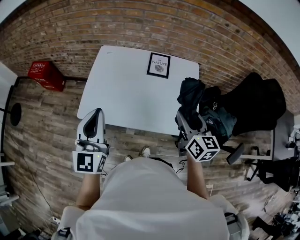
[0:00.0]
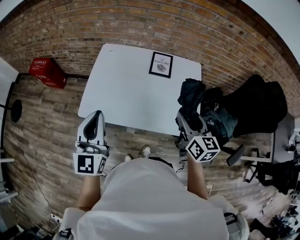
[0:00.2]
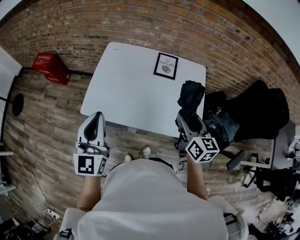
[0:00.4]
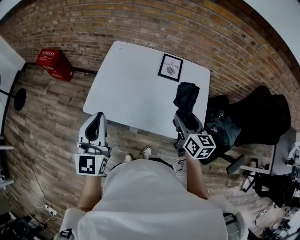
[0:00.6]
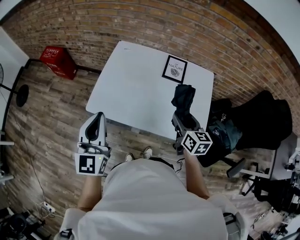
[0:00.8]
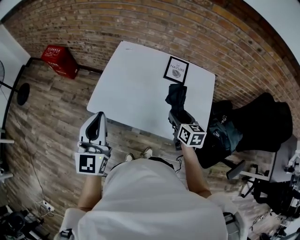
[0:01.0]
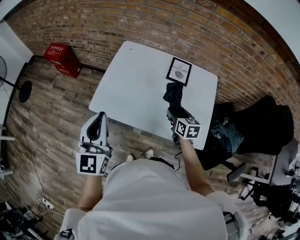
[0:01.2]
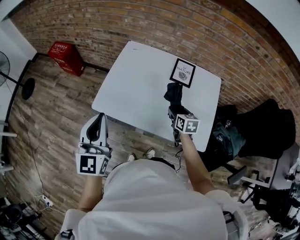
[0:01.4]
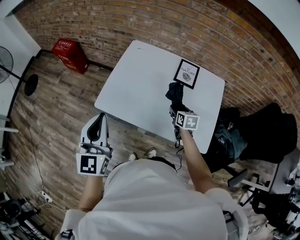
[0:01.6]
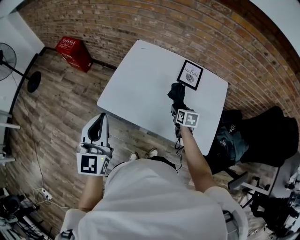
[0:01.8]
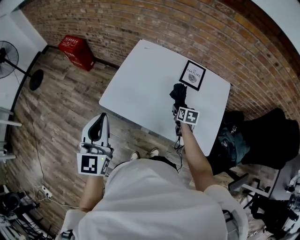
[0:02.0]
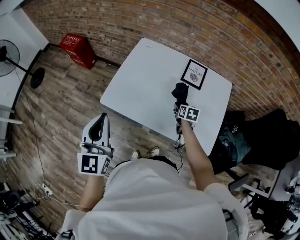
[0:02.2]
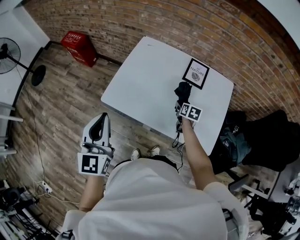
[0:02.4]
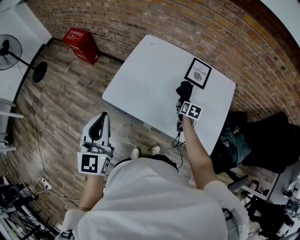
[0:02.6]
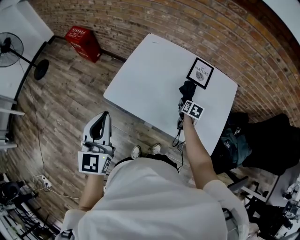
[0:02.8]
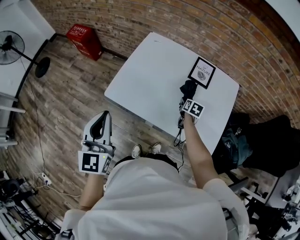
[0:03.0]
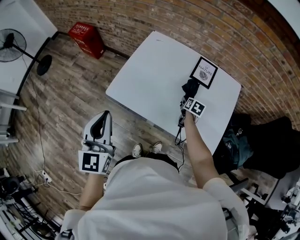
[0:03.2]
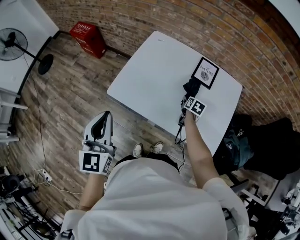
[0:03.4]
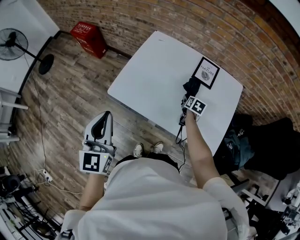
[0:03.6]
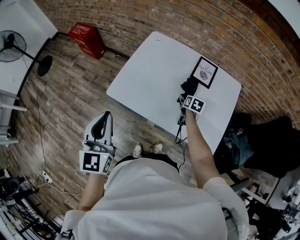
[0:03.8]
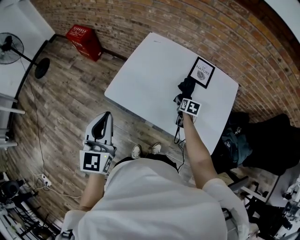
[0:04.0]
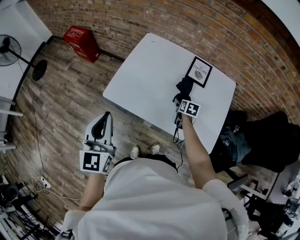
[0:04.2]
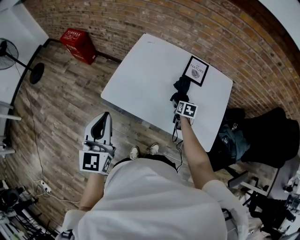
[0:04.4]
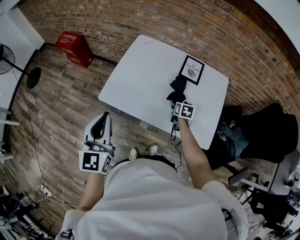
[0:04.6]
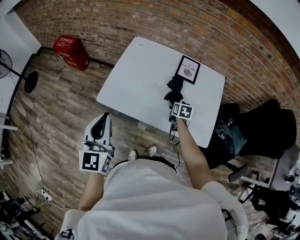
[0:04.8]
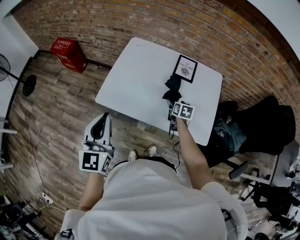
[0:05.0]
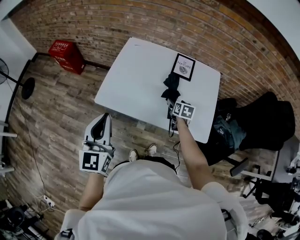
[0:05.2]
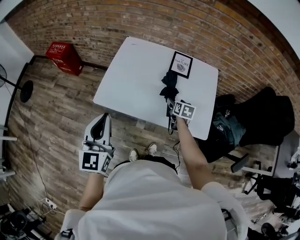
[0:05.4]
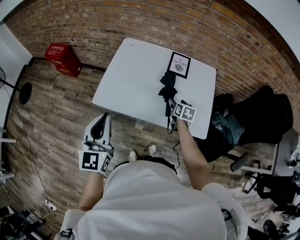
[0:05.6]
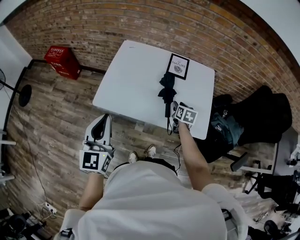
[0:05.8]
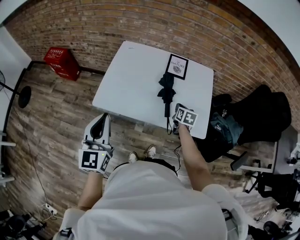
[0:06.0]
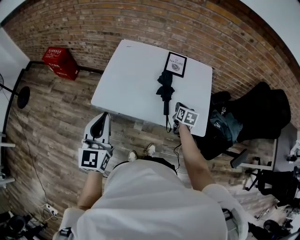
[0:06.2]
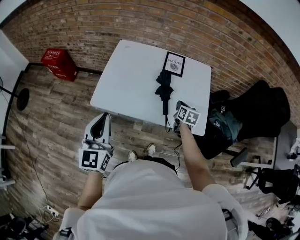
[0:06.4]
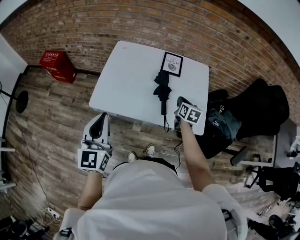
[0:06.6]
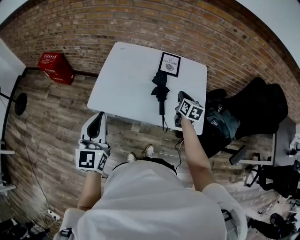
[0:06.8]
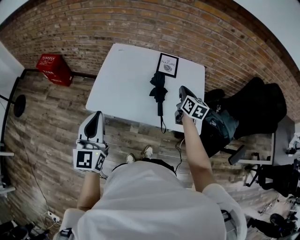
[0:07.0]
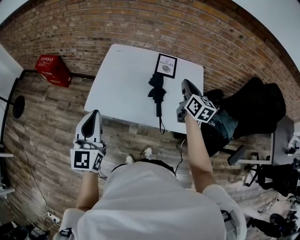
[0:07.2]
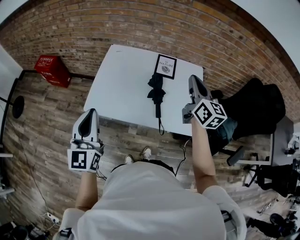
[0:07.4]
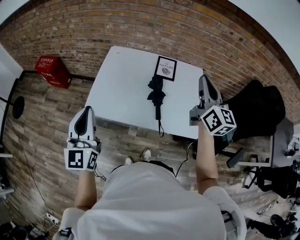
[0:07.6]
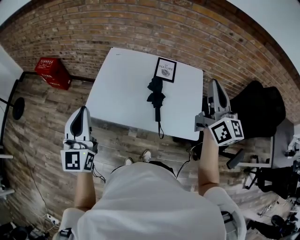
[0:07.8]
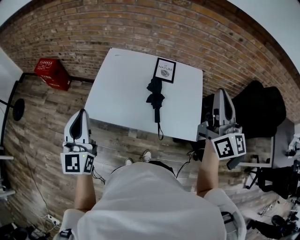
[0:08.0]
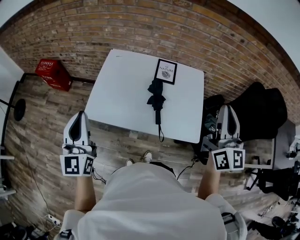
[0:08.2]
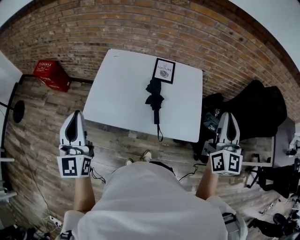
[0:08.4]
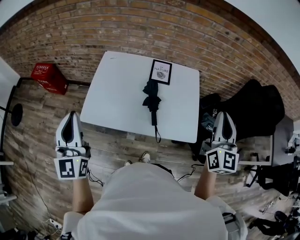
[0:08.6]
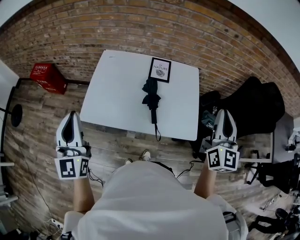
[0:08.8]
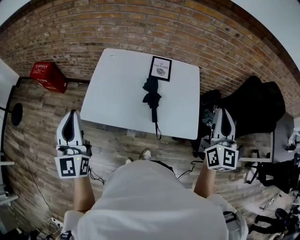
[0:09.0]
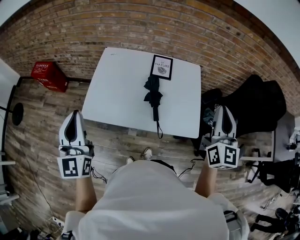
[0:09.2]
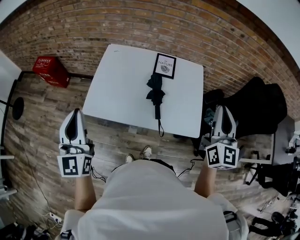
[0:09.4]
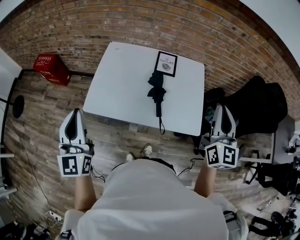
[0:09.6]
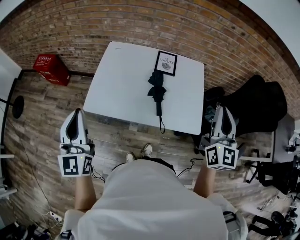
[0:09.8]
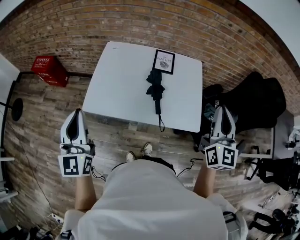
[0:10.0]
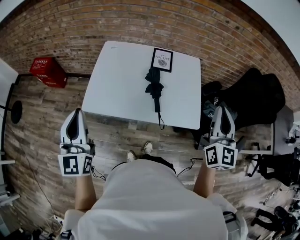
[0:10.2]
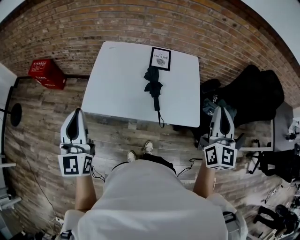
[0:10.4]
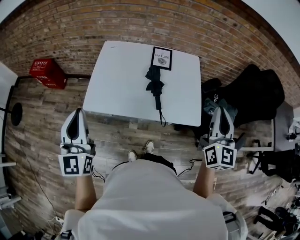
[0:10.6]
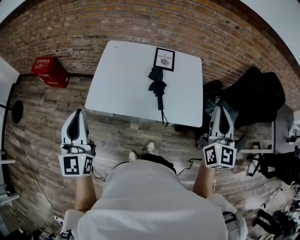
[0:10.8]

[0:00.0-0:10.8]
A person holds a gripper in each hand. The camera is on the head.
0:00.0 to 0:01.6: The left gripper goes approximately 5 cm to the left. The right gripper shifts some 25 cm downward and forward, and swivels some 30 degrees.
0:01.6 to 0:03.0: The right gripper moves downward, about 10 cm.
0:03.0 to 0:04.6: The grippers stay close to where they were, moving slightly.
0:04.6 to 0:06.2: The right gripper moves backward, upward and to the right, about 10 cm, and closes.
0:06.2 to 0:07.8: The left gripper moves upward, roughly 5 cm, while the right gripper travels upward by approximately 40 cm, and tilts its fingers some 50 degrees upward.
0:07.8 to 0:09.2: The right gripper shifts some 10 cm to the right and backward, and rotates some 20 degrees.
0:09.2 to 0:10.8: Both grippers move backward, roughly 5 cm.

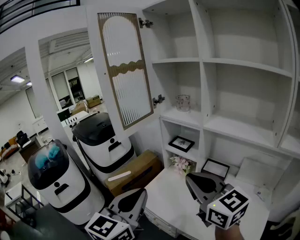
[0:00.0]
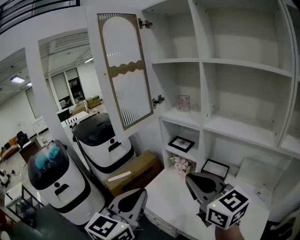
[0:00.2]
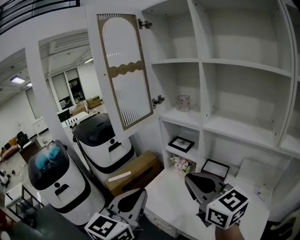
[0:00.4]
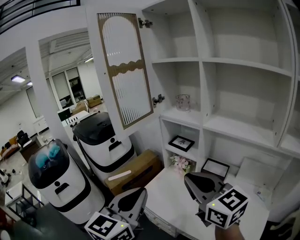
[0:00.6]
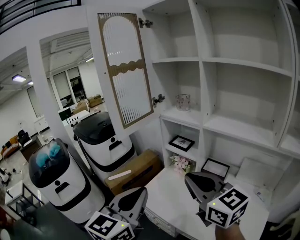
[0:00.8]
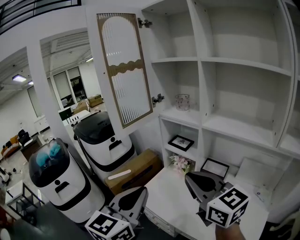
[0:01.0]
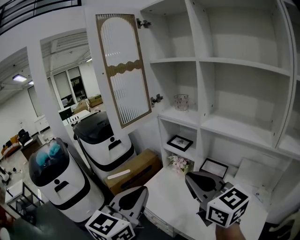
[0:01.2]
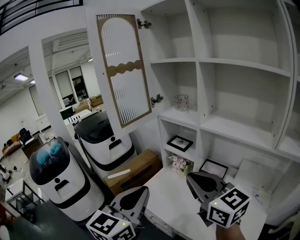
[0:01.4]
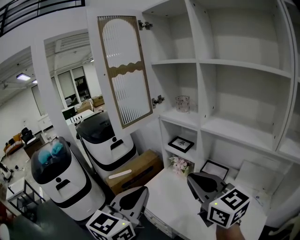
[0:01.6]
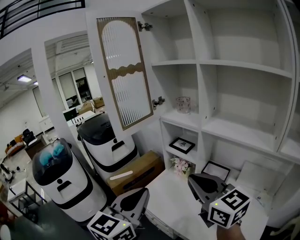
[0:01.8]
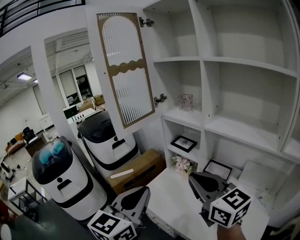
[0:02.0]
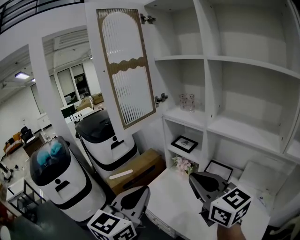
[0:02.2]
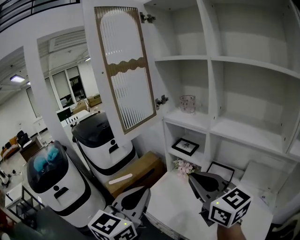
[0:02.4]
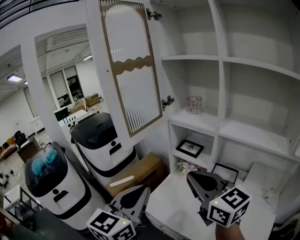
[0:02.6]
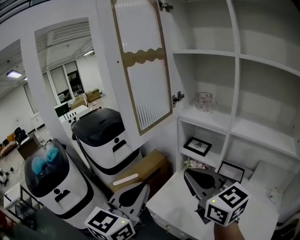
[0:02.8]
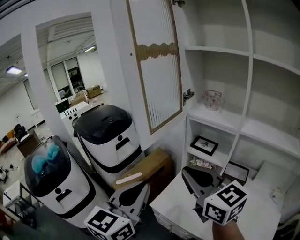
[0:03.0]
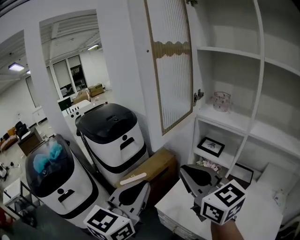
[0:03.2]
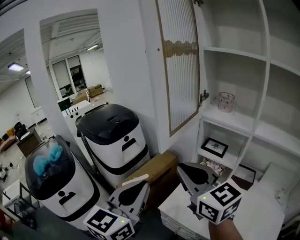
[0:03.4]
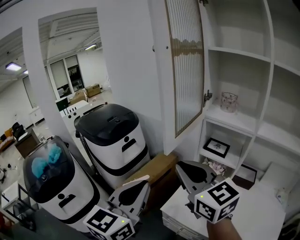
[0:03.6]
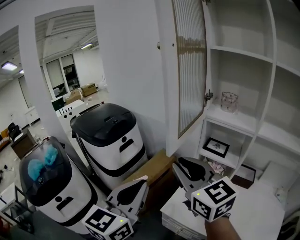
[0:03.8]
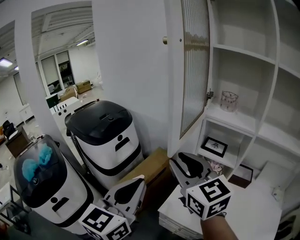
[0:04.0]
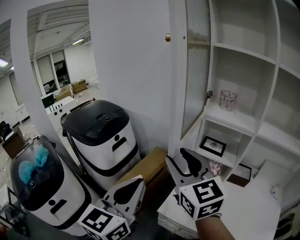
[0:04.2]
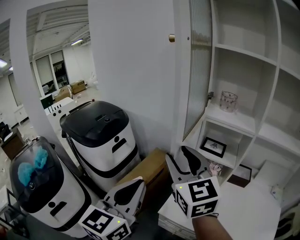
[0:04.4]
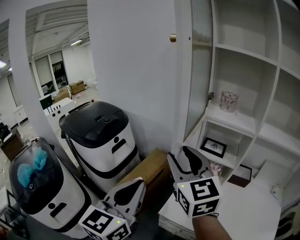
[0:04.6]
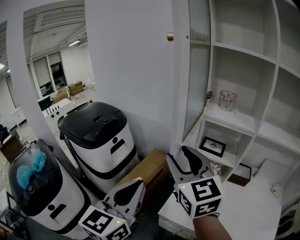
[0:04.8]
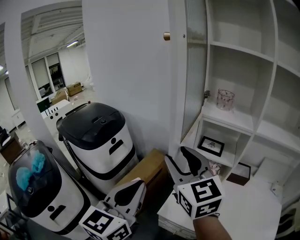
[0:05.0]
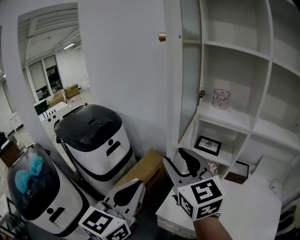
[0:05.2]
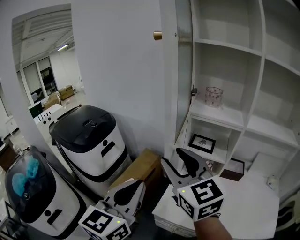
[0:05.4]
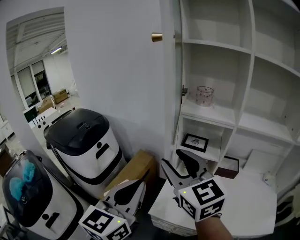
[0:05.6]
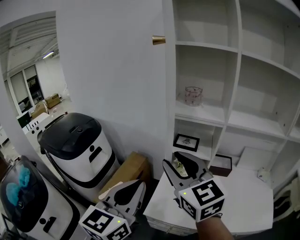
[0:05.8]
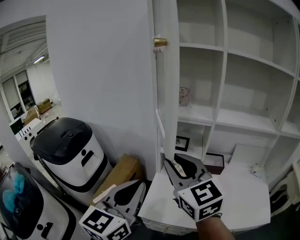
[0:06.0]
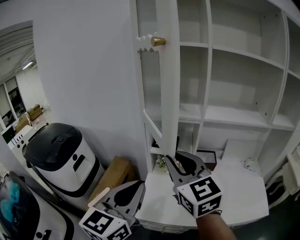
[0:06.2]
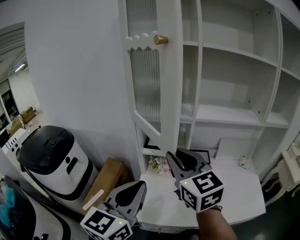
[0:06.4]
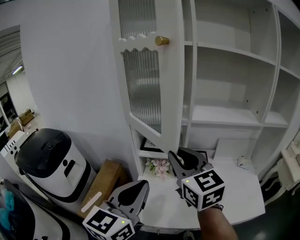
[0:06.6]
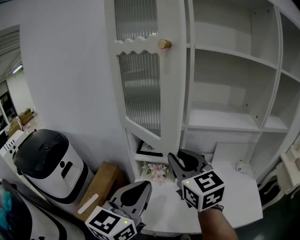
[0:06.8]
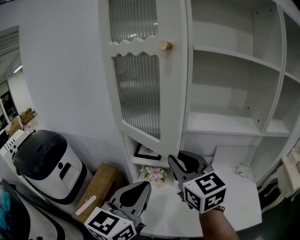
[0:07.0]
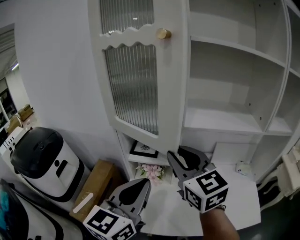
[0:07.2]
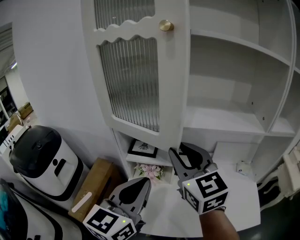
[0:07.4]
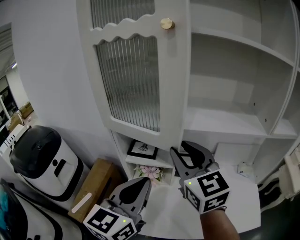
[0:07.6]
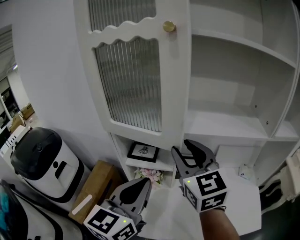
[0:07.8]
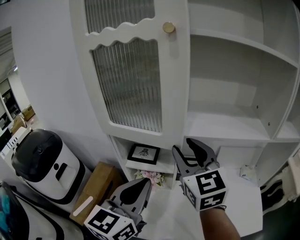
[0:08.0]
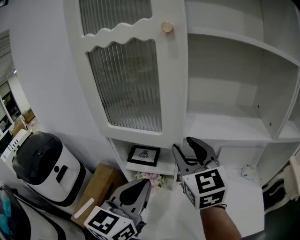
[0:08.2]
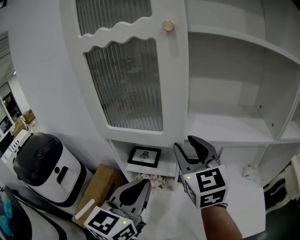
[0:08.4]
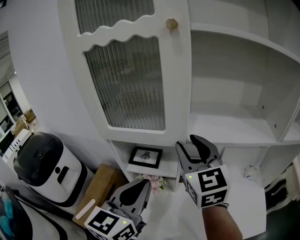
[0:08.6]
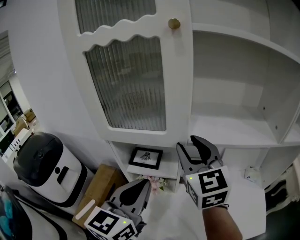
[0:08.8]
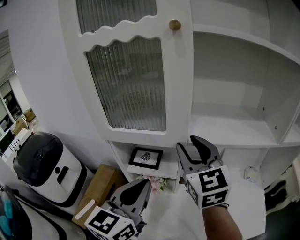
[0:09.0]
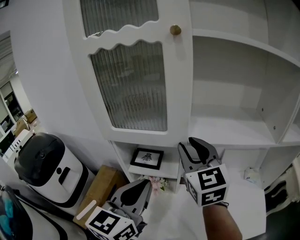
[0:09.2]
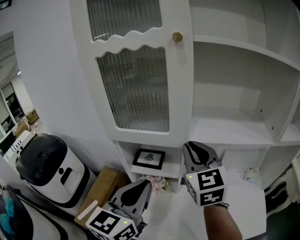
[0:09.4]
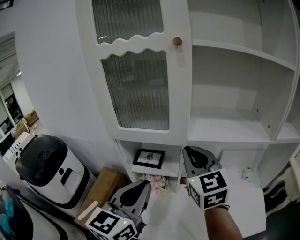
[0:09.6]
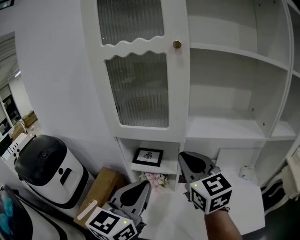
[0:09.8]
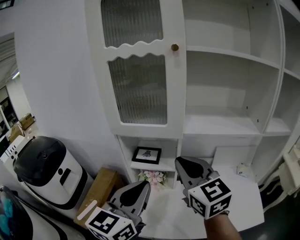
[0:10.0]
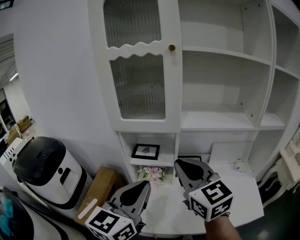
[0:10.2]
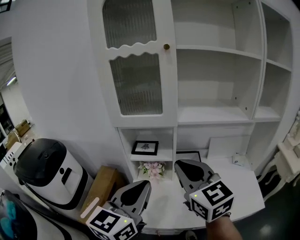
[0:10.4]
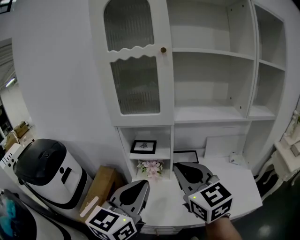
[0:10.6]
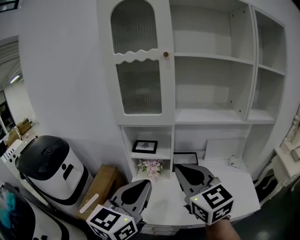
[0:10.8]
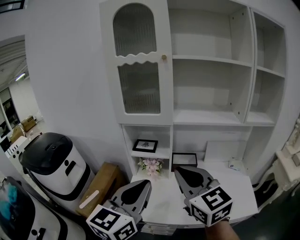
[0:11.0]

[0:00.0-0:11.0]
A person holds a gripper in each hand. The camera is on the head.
0:00.0 to 0:01.6: The grippers move only a little.
0:01.6 to 0:03.2: The grippers both shift to the left and forward by about 25 cm.
0:03.2 to 0:04.8: The left gripper shifts some 10 cm to the left and forward. Meanwhile the right gripper shifts roughly 15 cm forward and to the left, changes its angle by about 20 degrees, and opens.
0:04.8 to 0:06.2: Both grippers move to the right, roughly 15 cm. The left gripper turns by about 20 degrees; the right gripper closes up.
0:06.2 to 0:07.8: Both grippers travel together forward and to the right, about 20 cm.
0:07.8 to 0:09.4: The right gripper closes up.
0:09.4 to 0:11.0: The grippers both shift backward by about 25 cm.

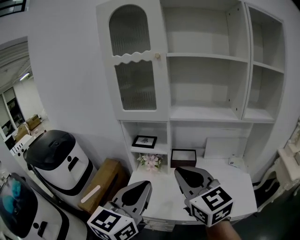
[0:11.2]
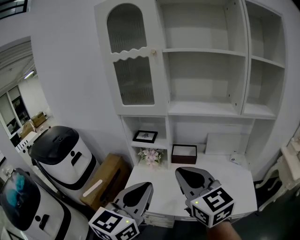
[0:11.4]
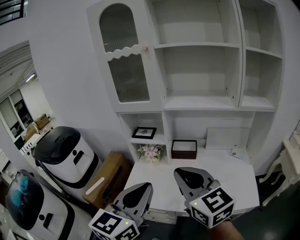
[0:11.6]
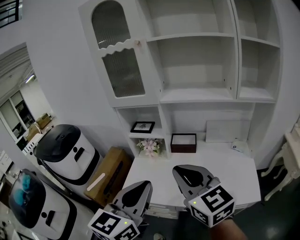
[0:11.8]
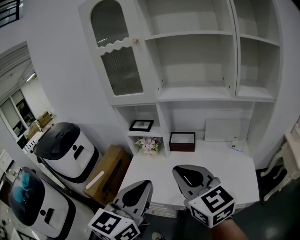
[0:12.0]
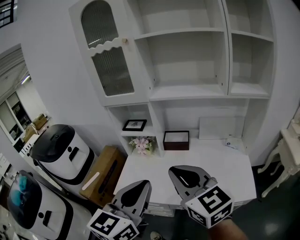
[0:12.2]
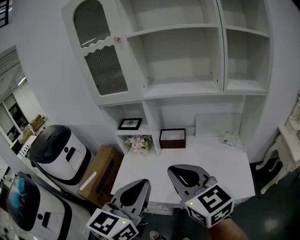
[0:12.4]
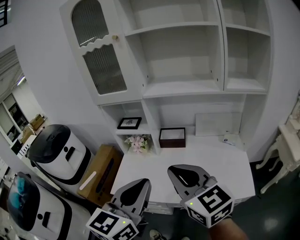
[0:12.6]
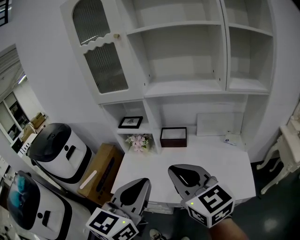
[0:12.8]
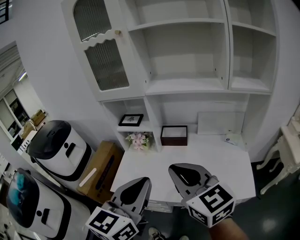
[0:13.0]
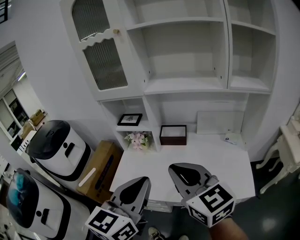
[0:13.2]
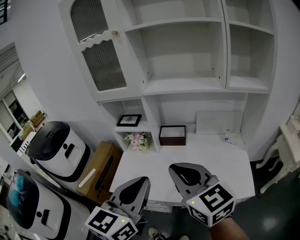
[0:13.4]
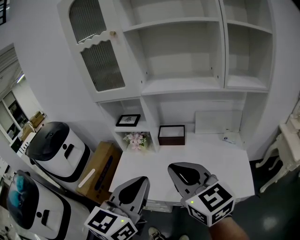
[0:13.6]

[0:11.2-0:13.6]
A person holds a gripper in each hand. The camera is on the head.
0:11.2 to 0:12.4: Both grippers travel together to the right and backward, about 10 cm.
0:12.4 to 0:13.6: The grippers make only small movements.
